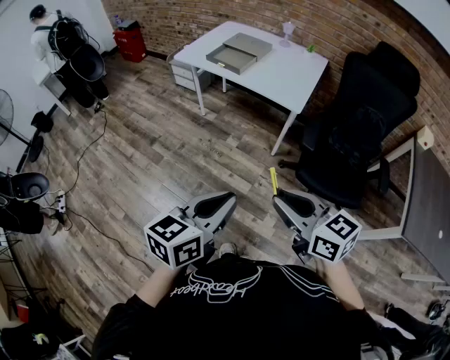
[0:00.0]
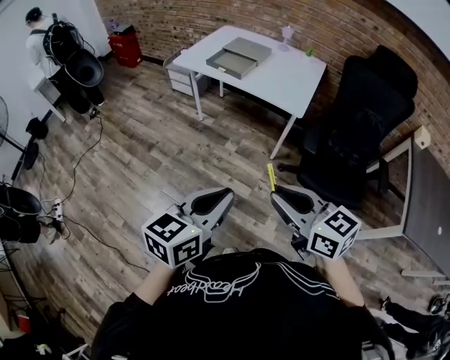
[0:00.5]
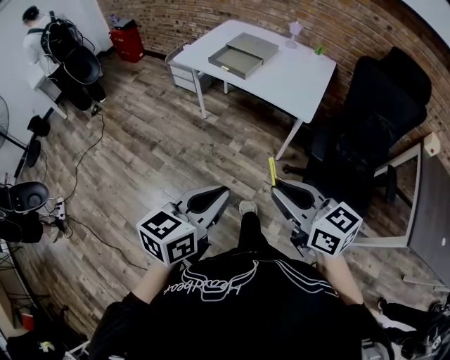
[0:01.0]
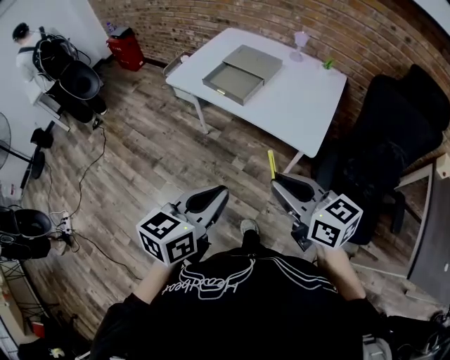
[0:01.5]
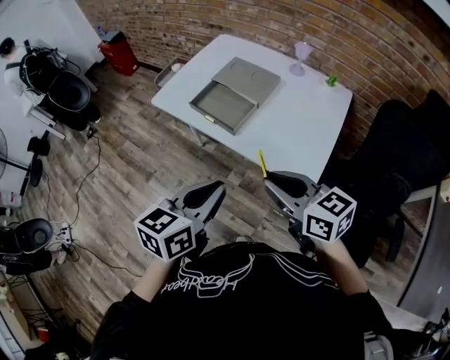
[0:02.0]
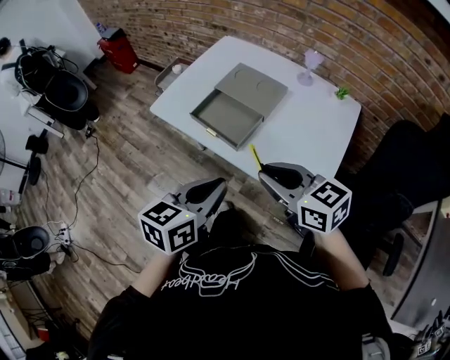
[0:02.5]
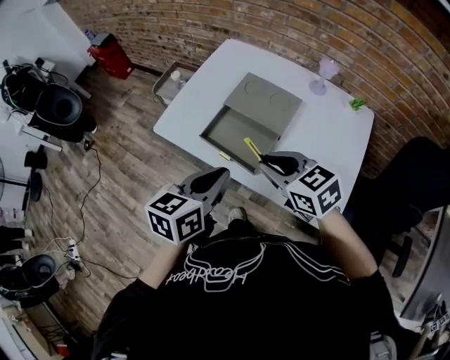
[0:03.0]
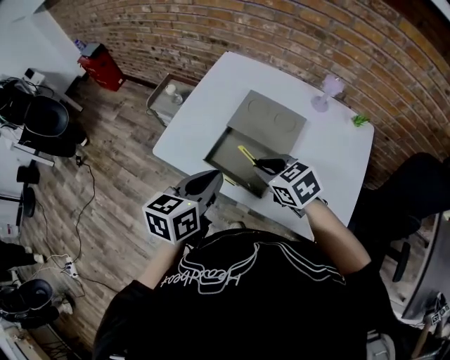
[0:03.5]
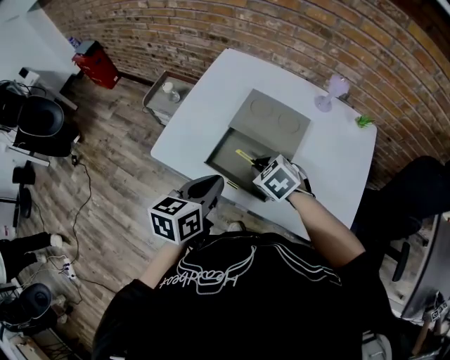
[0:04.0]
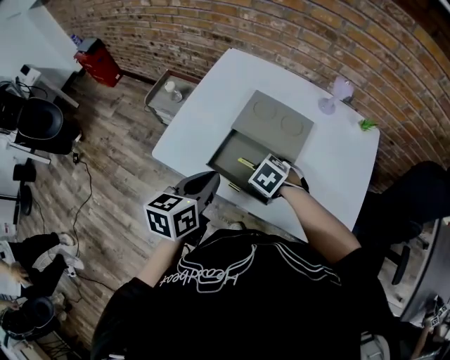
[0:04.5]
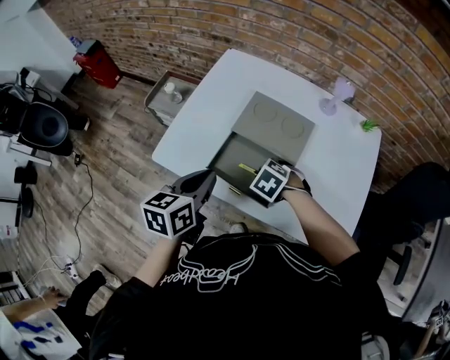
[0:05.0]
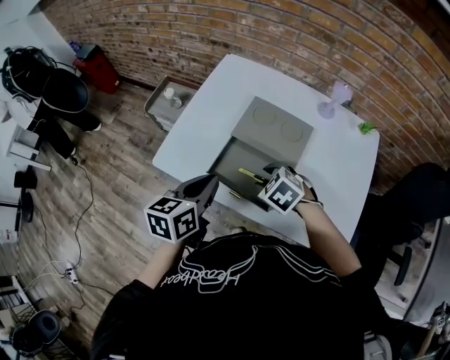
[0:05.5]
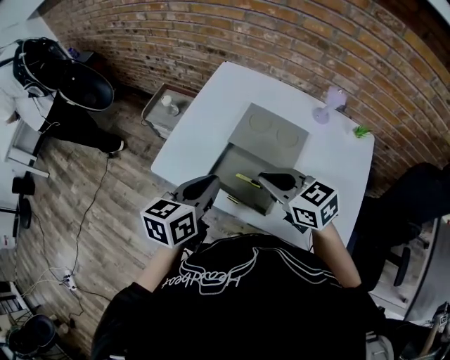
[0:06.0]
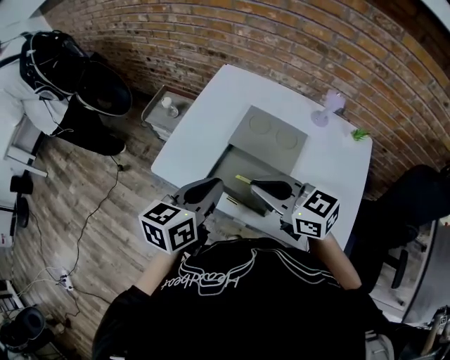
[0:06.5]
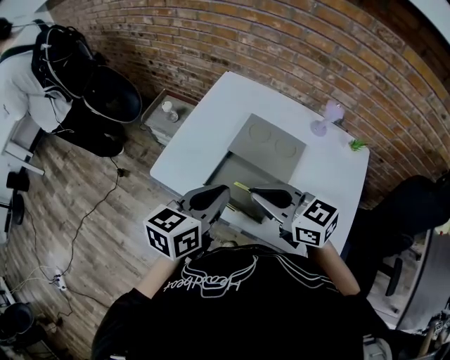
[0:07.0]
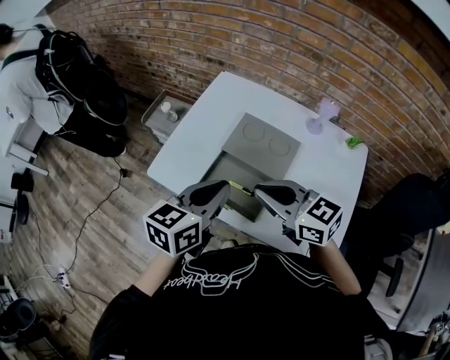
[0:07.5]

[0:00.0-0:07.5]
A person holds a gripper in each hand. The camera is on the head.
0:00.0 to 0:02.0: The two grippers travel together, forward, about 40 cm.
0:02.0 to 0:04.0: The left gripper moves forward, some 30 cm; the right gripper travels forward and downward by about 40 cm, and tips its fingers downward by some 40 degrees.
0:04.0 to 0:05.5: The right gripper opens its fingers.
0:05.5 to 0:07.5: The left gripper shifts roughly 10 cm upward and to the right, while the right gripper is displaced upward by about 20 cm, angles its fingers upward, by about 50 degrees, and closes its fingers.

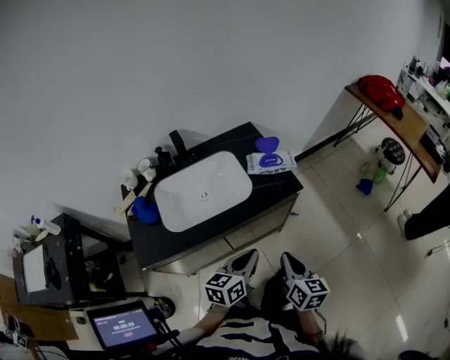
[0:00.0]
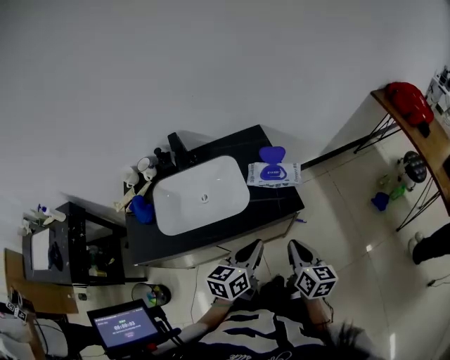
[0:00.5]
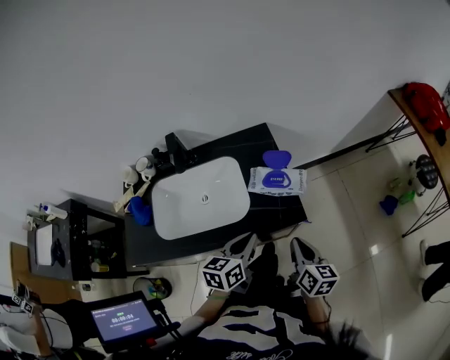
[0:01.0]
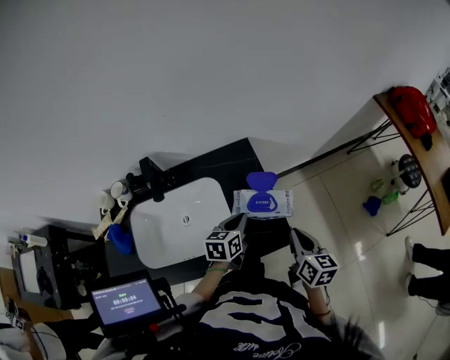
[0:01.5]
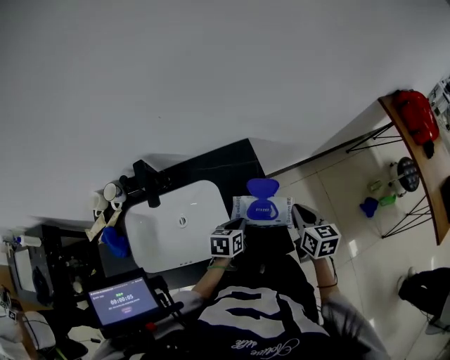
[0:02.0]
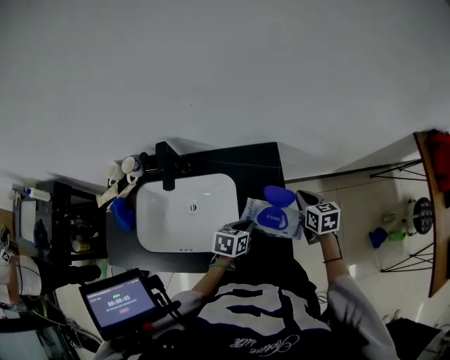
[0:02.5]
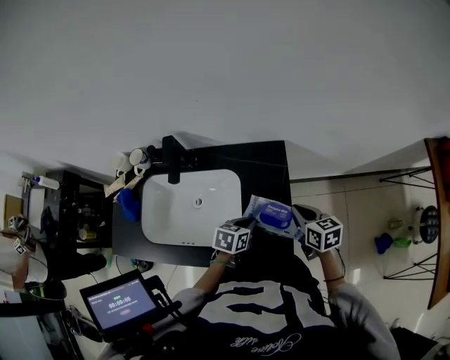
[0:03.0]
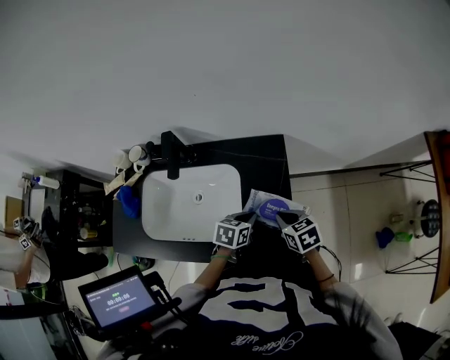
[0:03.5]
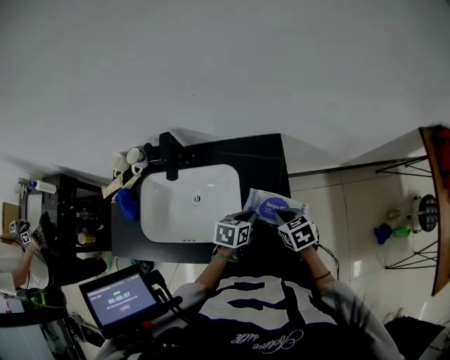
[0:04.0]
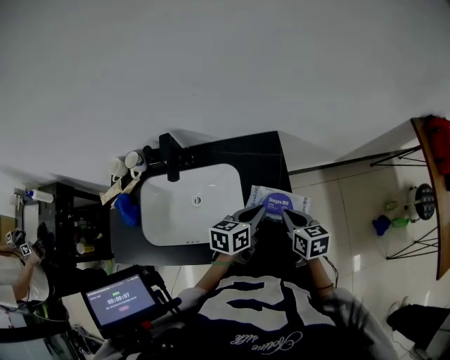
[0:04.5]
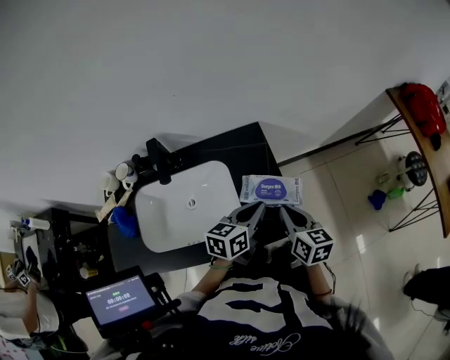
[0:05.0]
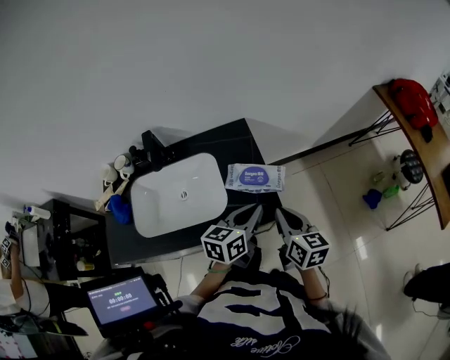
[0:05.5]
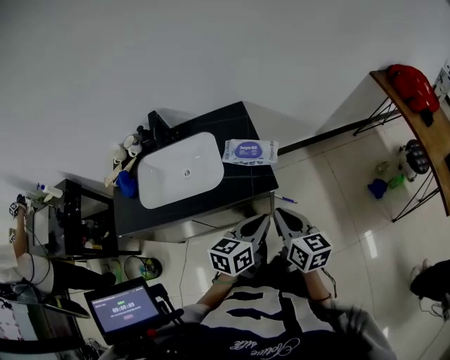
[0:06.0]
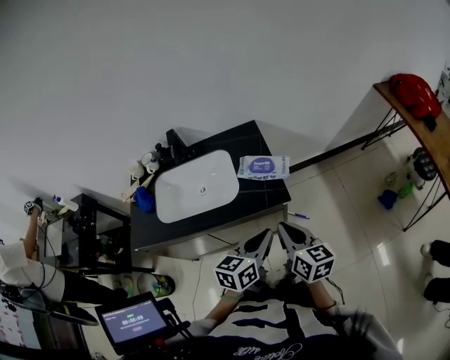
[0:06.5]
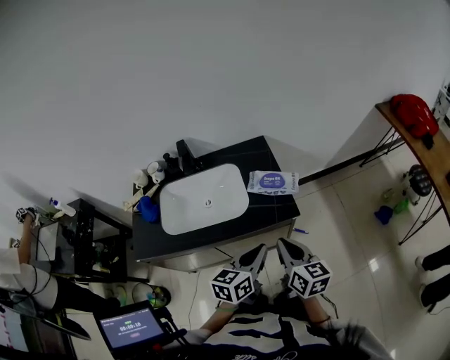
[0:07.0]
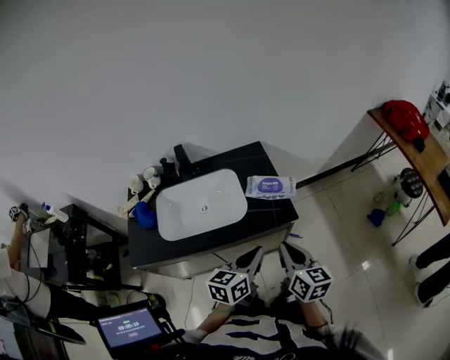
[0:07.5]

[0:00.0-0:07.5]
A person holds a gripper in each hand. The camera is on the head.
0:00.0 to 0:02.0: The right gripper heads forward, covering about 40 cm. The left gripper shifts some 40 cm forward and downward, and turns by some 30 degrees.
0:02.0 to 0:04.0: The right gripper goes approximately 10 cm to the left and downward, reaches about 10 cm forward, then returns, and turns by roughly 40 degrees.
0:04.0 to 0:05.5: The right gripper goes roughly 20 cm backward, upward and to the right, and tips its fingers upward by some 30 degrees, while the left gripper moves upward, backward and to the right, approximately 20 cm, and rotates approximately 30 degrees.
0:05.5 to 0:07.5: Both grippers travel together backward, approximately 15 cm.

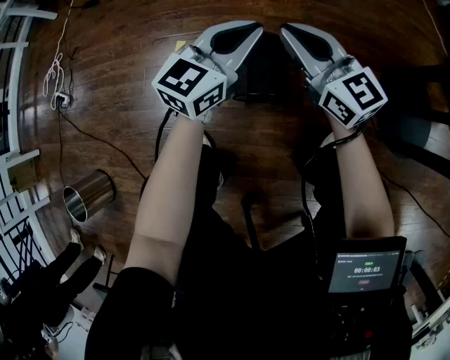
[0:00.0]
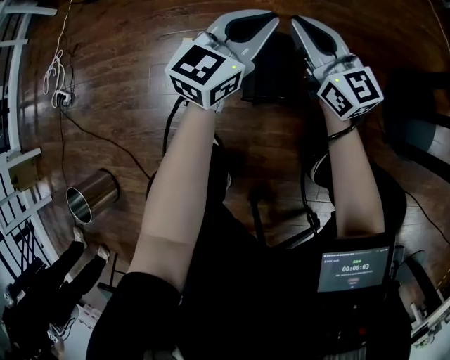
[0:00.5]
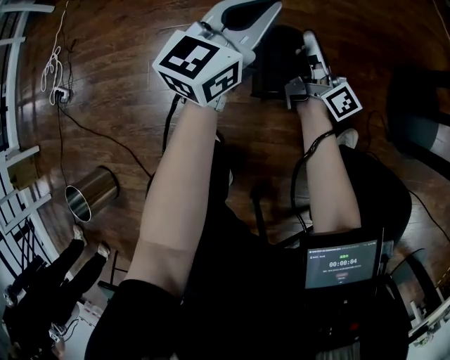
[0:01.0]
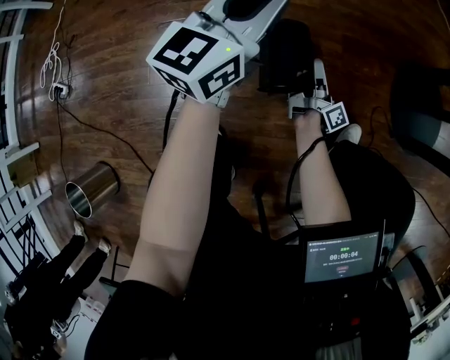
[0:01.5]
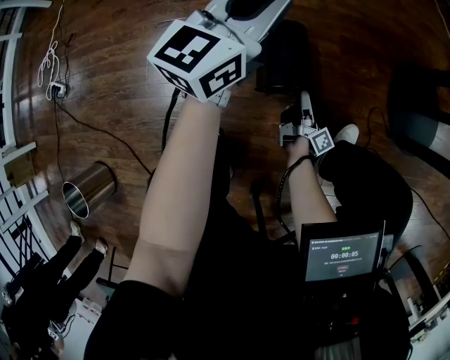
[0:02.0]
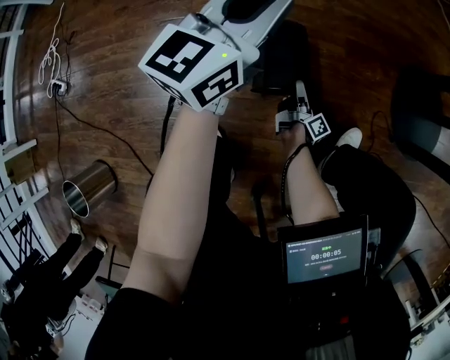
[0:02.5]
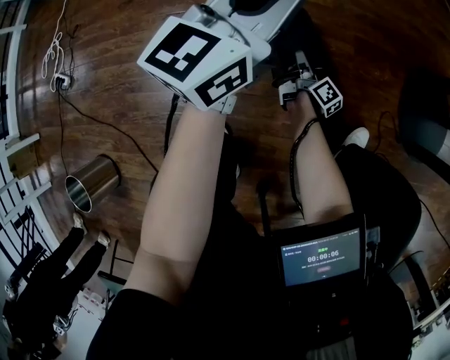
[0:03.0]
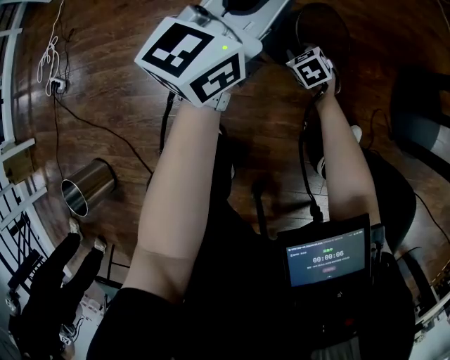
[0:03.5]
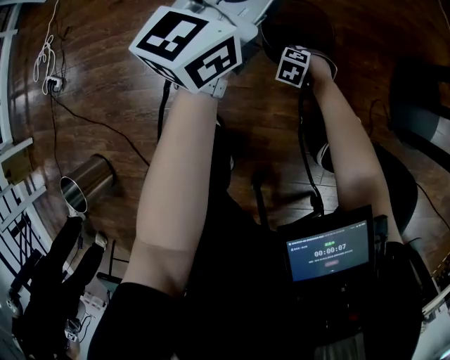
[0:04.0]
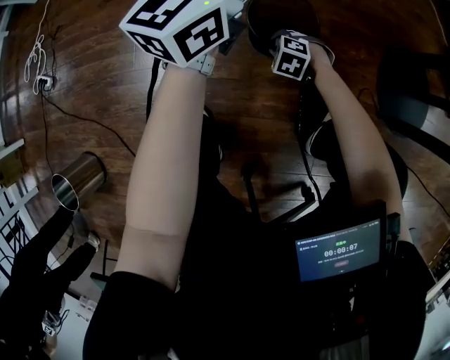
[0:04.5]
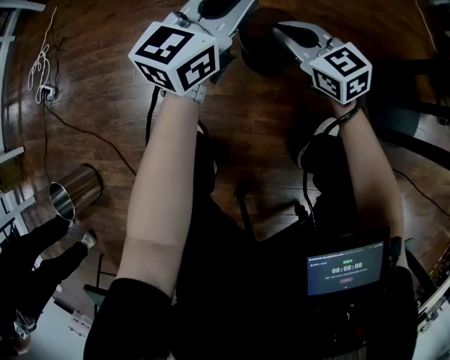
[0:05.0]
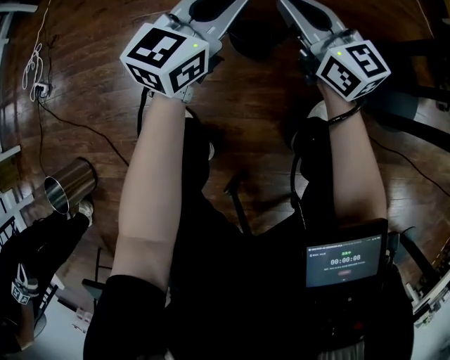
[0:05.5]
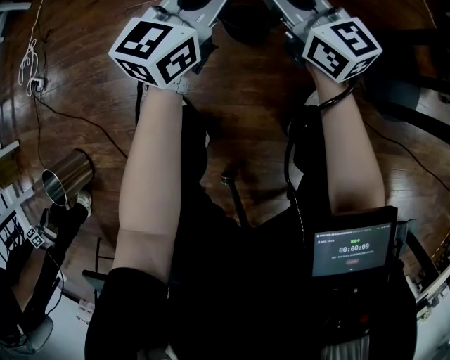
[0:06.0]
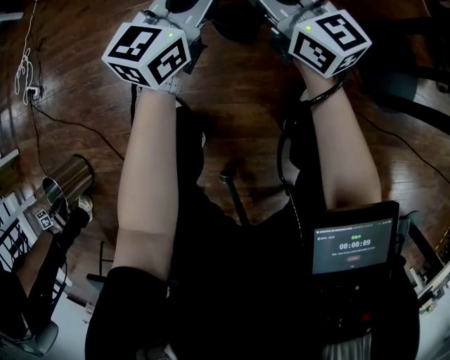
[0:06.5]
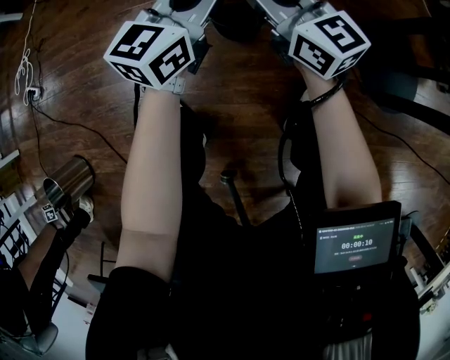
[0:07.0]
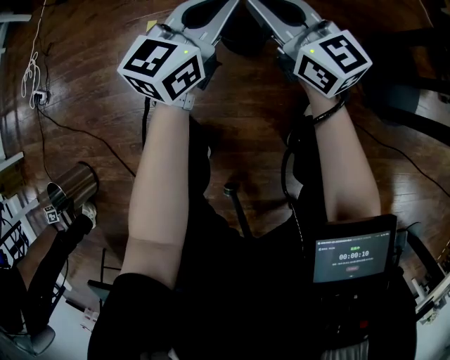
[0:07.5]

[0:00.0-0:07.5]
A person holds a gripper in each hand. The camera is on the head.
0:00.0 to 0:02.0: The left gripper shifts by roughly 5 cm. Meanwhile the right gripper moves downward, about 35 cm, twists approximately 80 degrees clockwise, seen from behind, and opens.
0:02.0 to 0:04.0: The right gripper moves up and down over about 5 cm, changing direction 2 times, points its fingers roughly 80 degrees further downward, and closes.
0:04.0 to 0:05.5: The left gripper ends up roughly 10 cm from where it was; the right gripper travels upward by approximately 40 cm, and tilts its fingers some 80 degrees upward.
0:05.5 to 0:07.5: The grippers stay close to where they were, moving slightly.

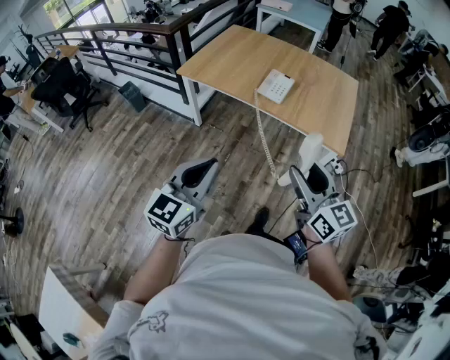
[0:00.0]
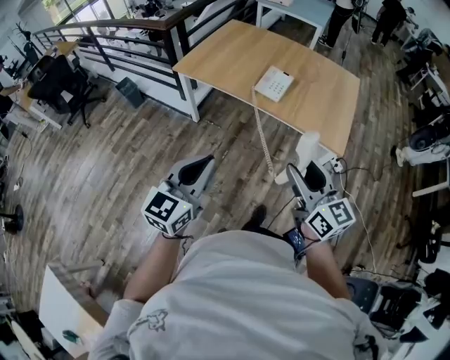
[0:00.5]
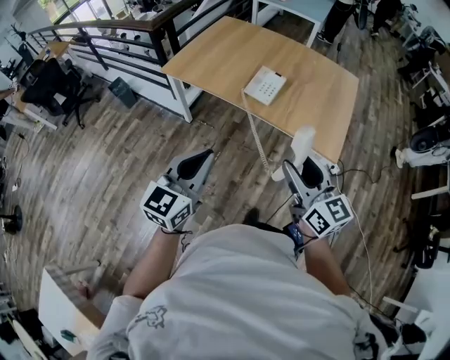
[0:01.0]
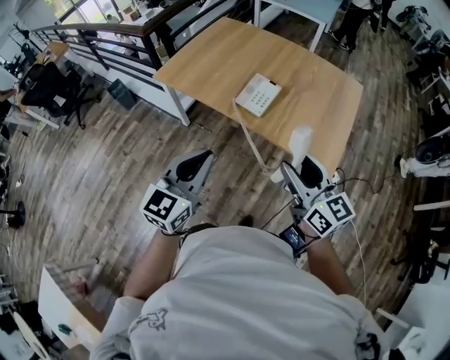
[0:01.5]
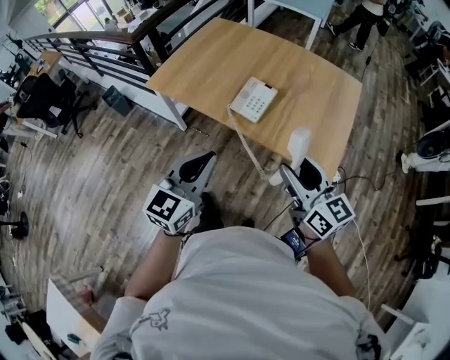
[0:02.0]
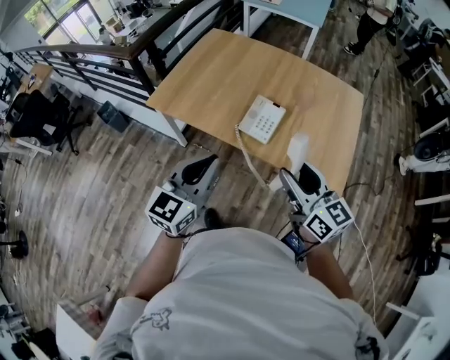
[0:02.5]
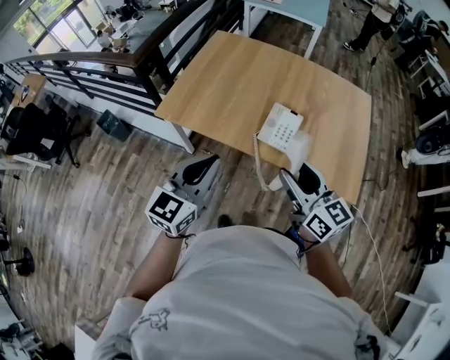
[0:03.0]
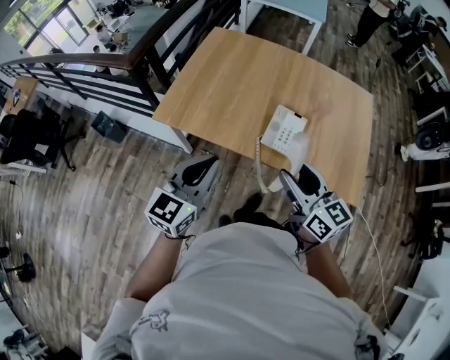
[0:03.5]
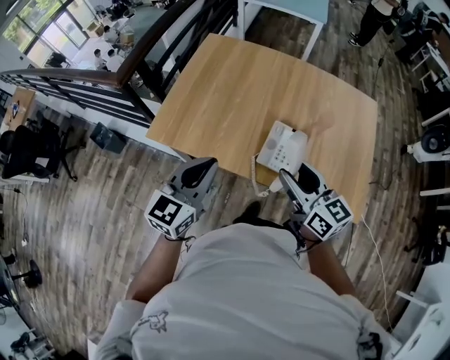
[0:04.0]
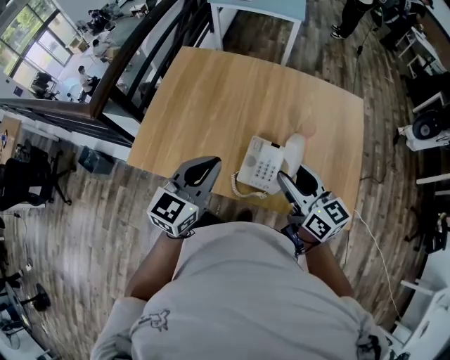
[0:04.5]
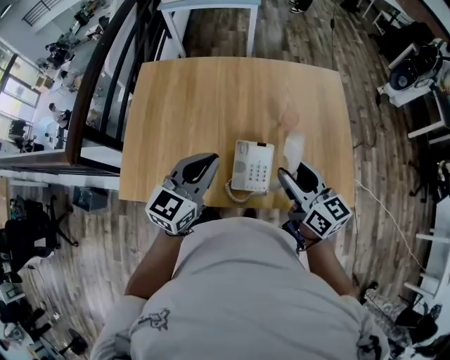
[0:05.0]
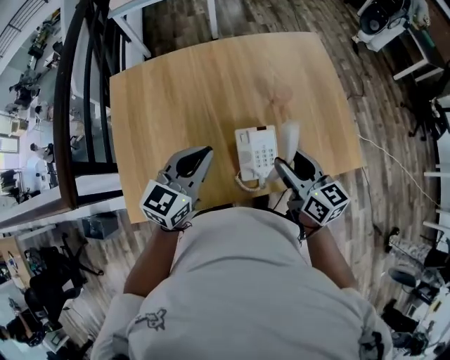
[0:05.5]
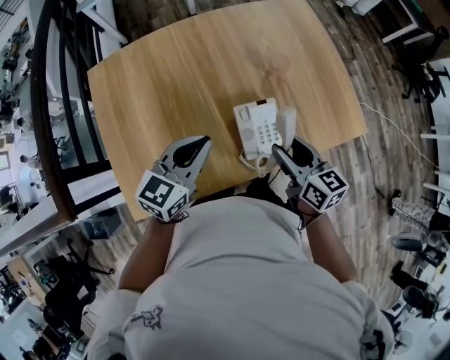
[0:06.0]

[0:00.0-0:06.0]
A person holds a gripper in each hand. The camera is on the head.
0:00.0 to 0:02.0: The two grippers go roughly 30 cm forward and to the right.
0:02.0 to 0:04.0: Both grippers travel together forward and to the left, roughly 35 cm.
0:04.0 to 0:06.0: The left gripper ends up approximately 25 cm from where it was, and changes its angle by approximately 40 degrees; the right gripper is displaced downward by approximately 10 cm, and turns by some 40 degrees.
